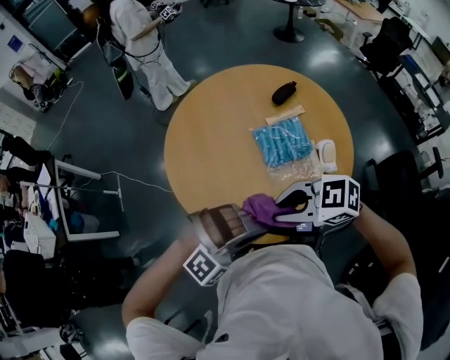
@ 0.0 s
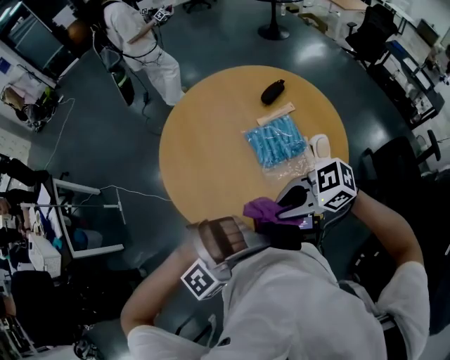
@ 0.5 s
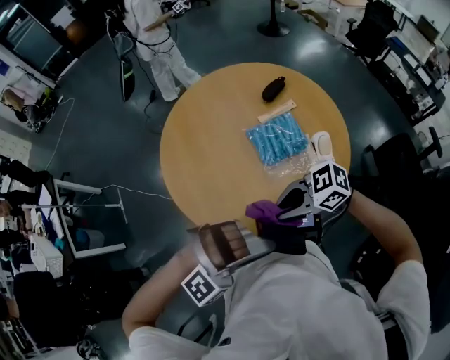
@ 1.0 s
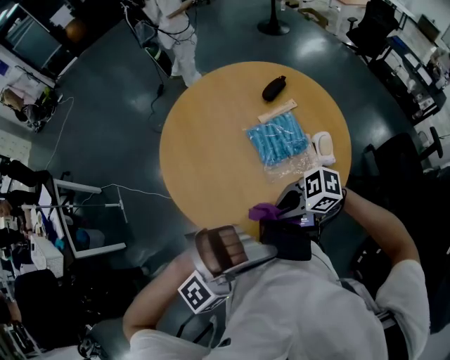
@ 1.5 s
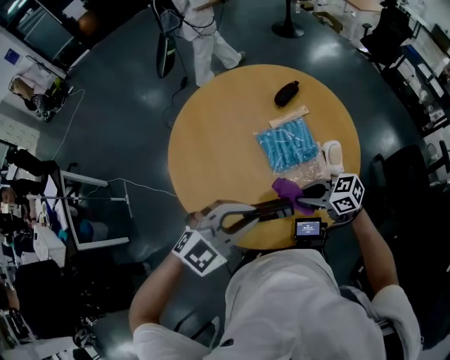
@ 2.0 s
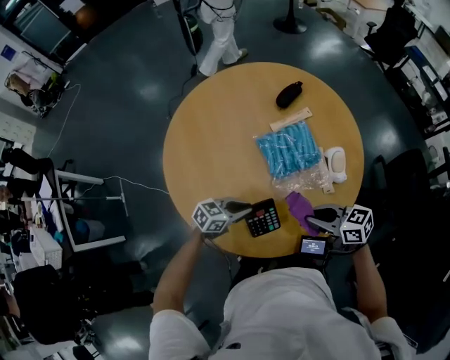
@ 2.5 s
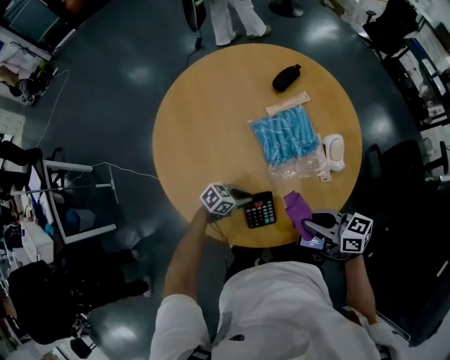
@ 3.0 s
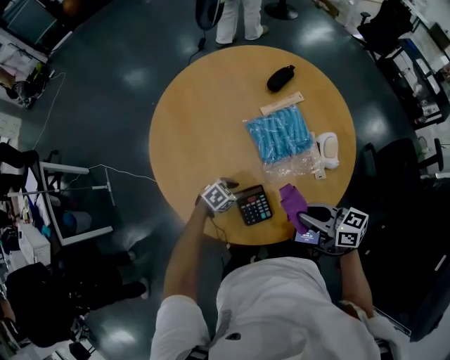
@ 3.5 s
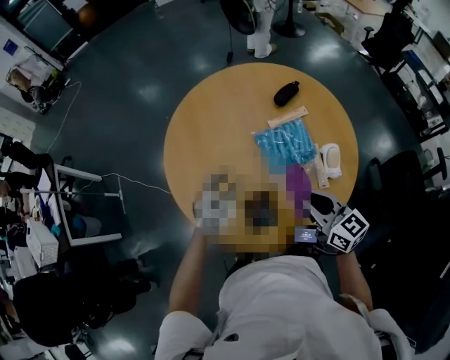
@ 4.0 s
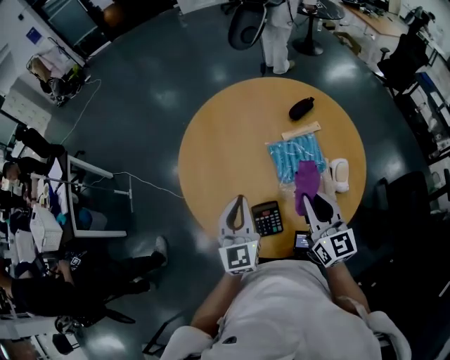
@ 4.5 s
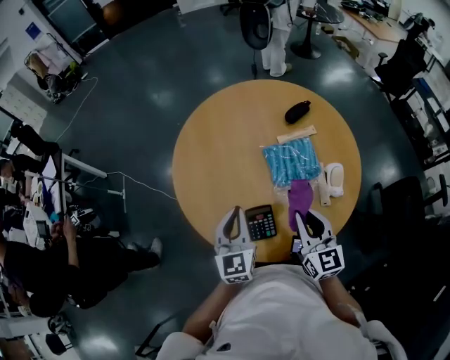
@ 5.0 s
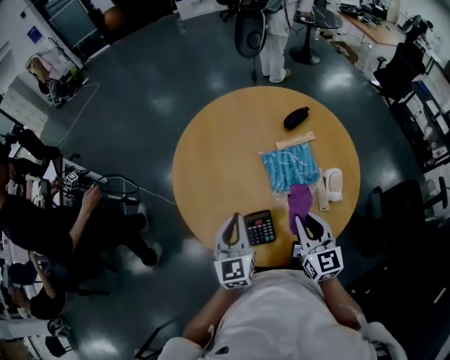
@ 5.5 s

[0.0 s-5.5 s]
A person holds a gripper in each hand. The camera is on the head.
0.0 to 2.0 s: The left gripper shifts by approximately 10 cm, and rolls counterclockwise, seen from behind, by some 50 degrees, while the right gripper shifts roughly 15 cm downward, and rotates roughly 30 degrees.
2.0 to 3.5 s: The left gripper shifts roughly 40 cm downward, tips its fingers downward by about 30 degrees, and opens; the right gripper turns by approximately 30 degrees.
3.5 to 5.5 s: The right gripper moves upward, approximately 5 cm, and rotates roughly 50 degrees. Meanwhile the left gripper shifts about 30 cm upward, points its fingers roughly 40 degrees further upward, and closes.

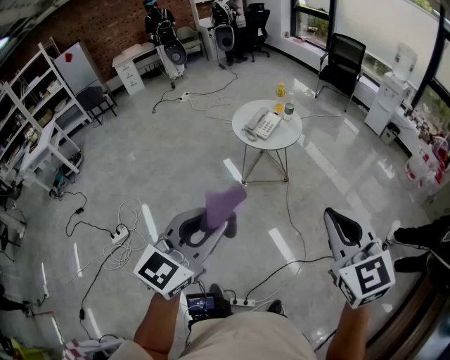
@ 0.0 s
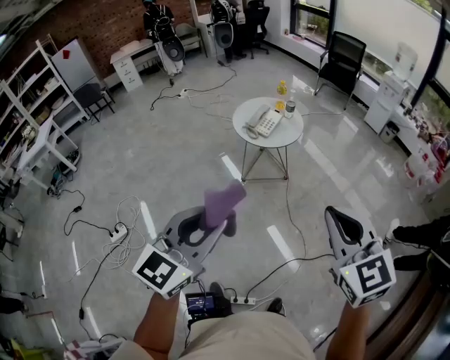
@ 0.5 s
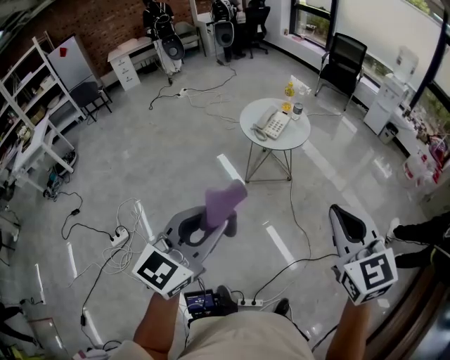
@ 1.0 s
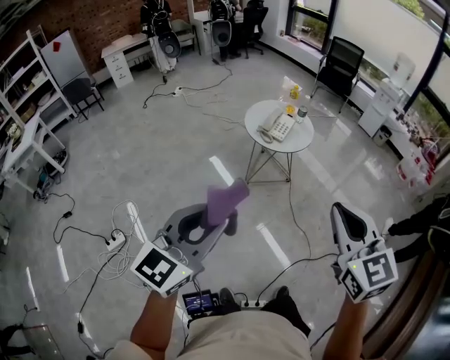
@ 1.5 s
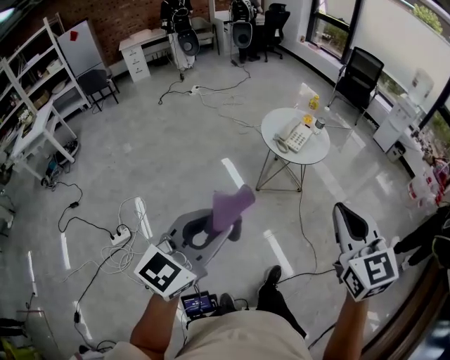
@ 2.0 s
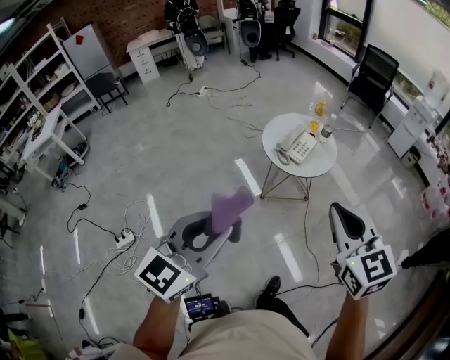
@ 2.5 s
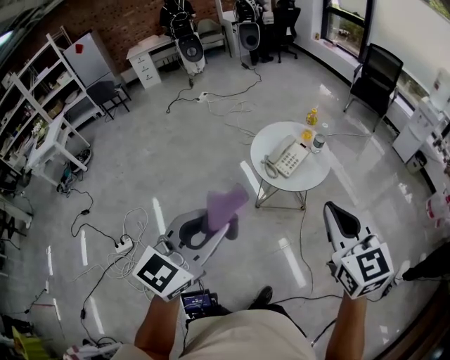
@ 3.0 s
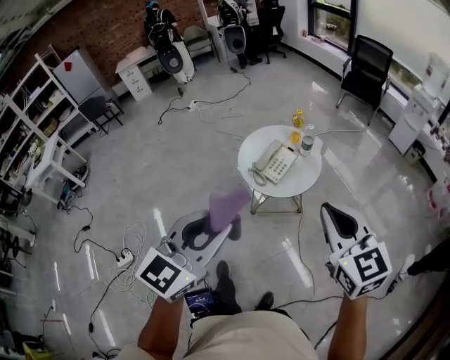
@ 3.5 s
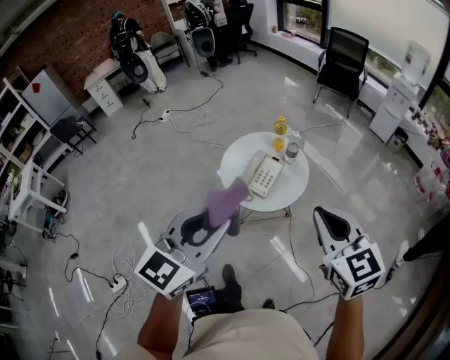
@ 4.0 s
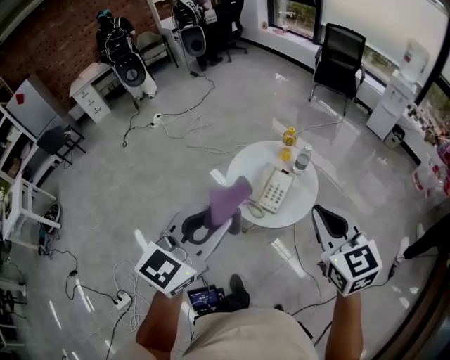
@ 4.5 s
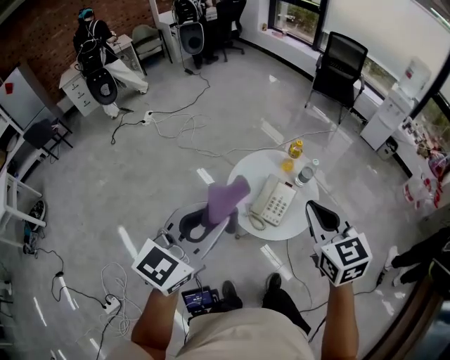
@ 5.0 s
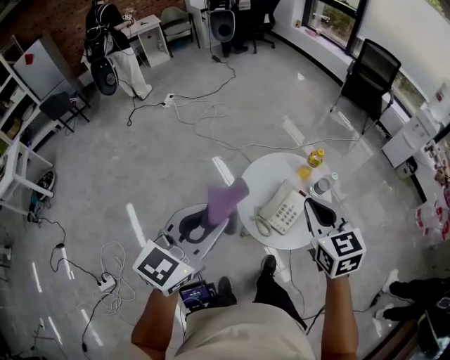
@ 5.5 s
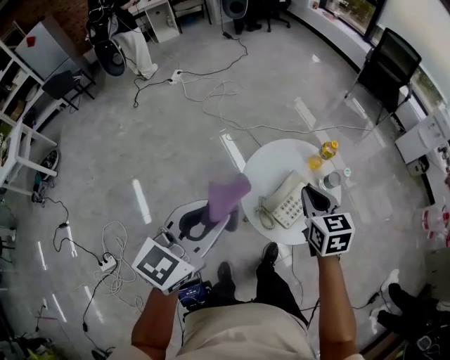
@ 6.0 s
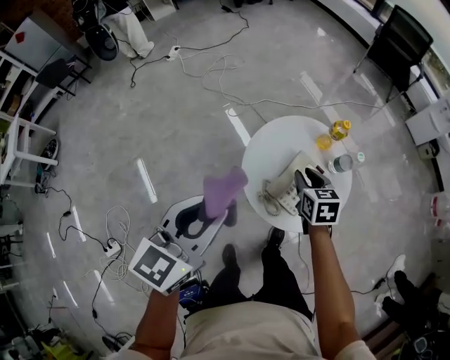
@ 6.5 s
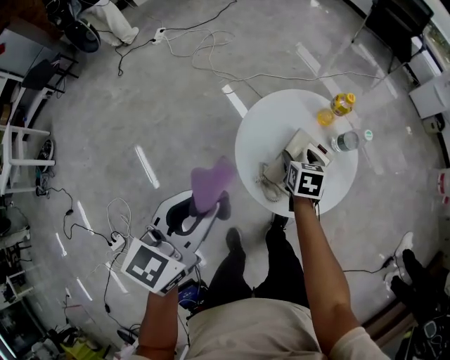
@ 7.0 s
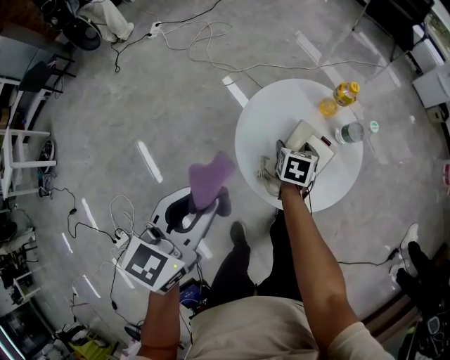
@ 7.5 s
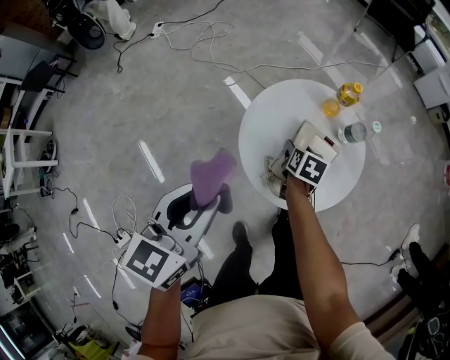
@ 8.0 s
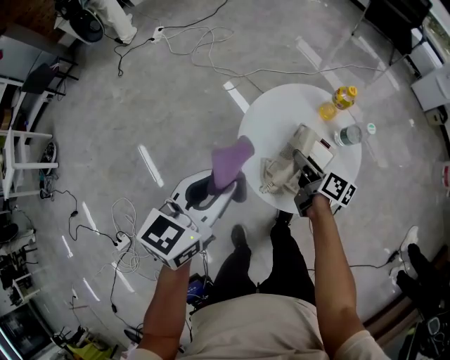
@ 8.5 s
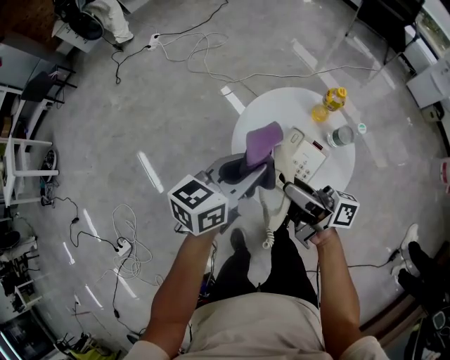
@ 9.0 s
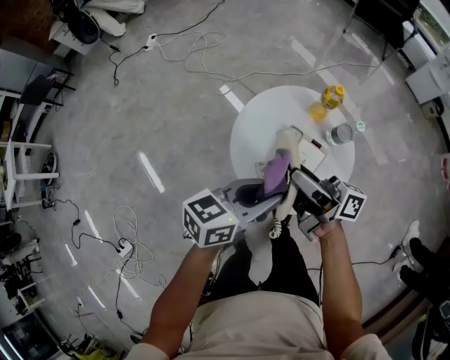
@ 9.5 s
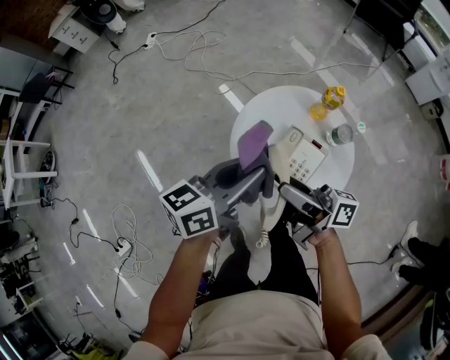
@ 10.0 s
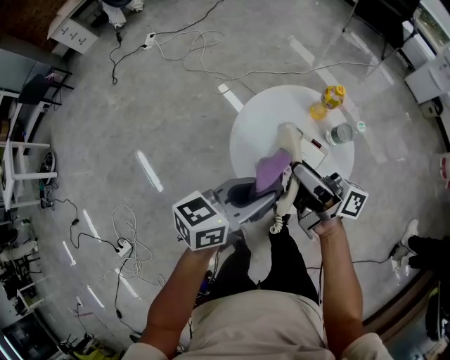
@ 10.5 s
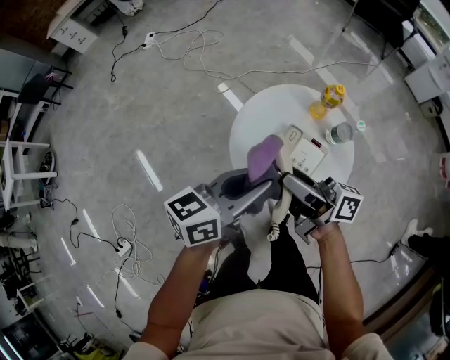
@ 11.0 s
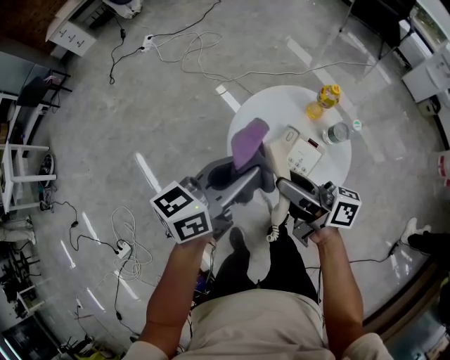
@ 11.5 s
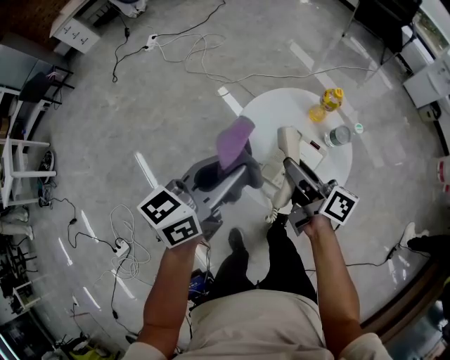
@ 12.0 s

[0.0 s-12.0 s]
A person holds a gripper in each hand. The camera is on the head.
0.0 to 2.0 s: Both grippers travel together to the left, roughly 25 cm.
2.0 to 4.0 s: The two grippers travel together, forward and to the right, about 40 cm.
4.0 to 6.0 s: The left gripper travels forward, to the left and downward by approximately 35 cm. Meanwhile the right gripper heads forward, downward and to the left, covering some 40 cm.
6.0 to 8.0 s: The right gripper travels downward by approximately 30 cm, changes its angle by some 40 degrees, and opens; the left gripper moves downward, some 15 cm.
8.0 to 10.0 s: The right gripper heads upward, covering roughly 25 cm, and tilts its fingers roughly 70 degrees upward, while the left gripper shifts roughly 10 cm to the right and forward, and changes its angle by roughly 30 degrees.
10.0 to 12.0 s: The right gripper ends up roughly 5 cm from where it was, and changes its angle by approximately 30 degrees. The left gripper ends up about 5 cm from where it was.

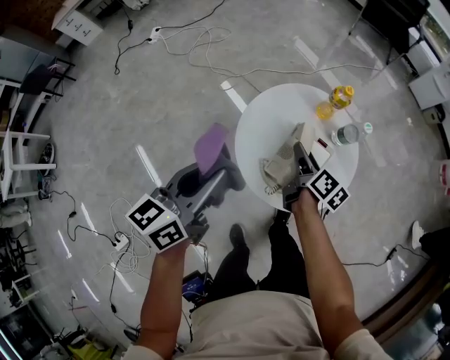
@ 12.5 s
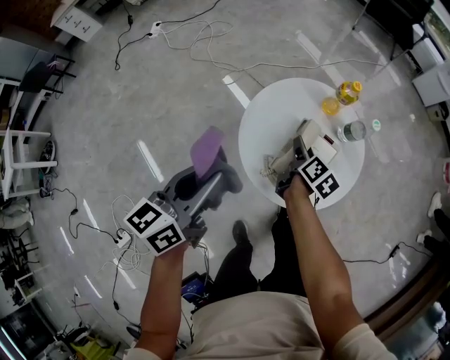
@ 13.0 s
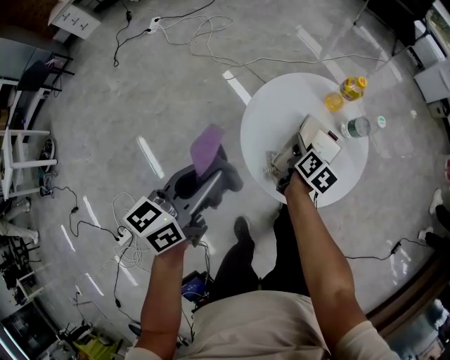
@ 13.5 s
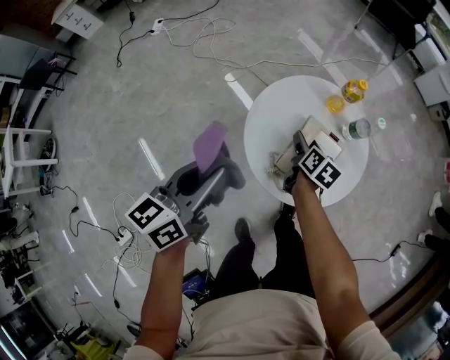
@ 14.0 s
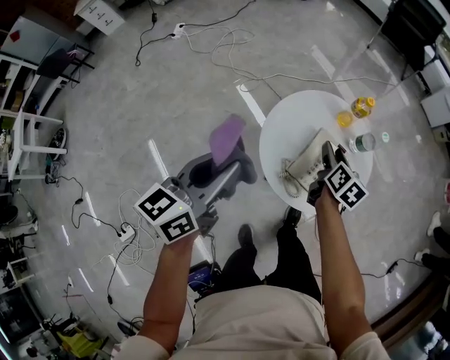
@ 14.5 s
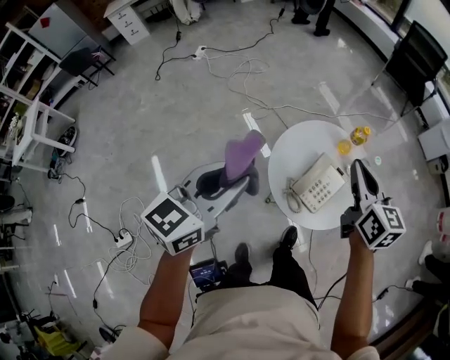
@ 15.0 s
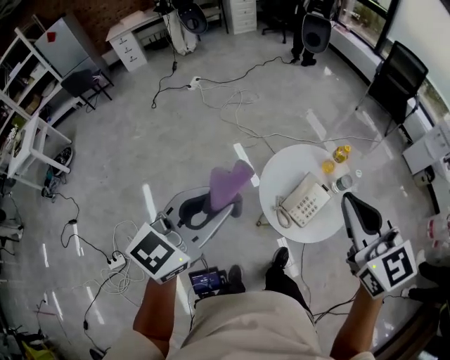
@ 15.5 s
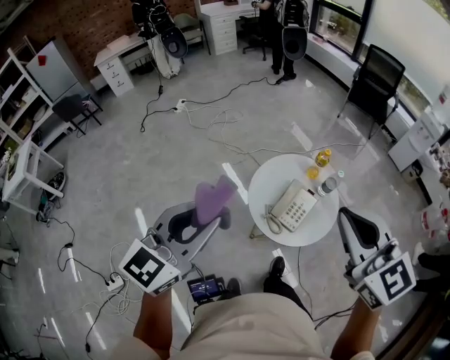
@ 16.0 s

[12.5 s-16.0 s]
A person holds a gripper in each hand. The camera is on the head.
12.5 to 14.5 s: The left gripper changes place by some 5 cm, while the right gripper reaches approximately 10 cm downward, then returns, and rotates roughly 20 degrees.
14.5 to 16.0 s: The right gripper travels upward and backward by roughly 50 cm, twists about 50 degrees counterclockwise, seen from behind, and closes its fingers. The left gripper moves upward and backward, some 30 cm, and swivels approximately 30 degrees.

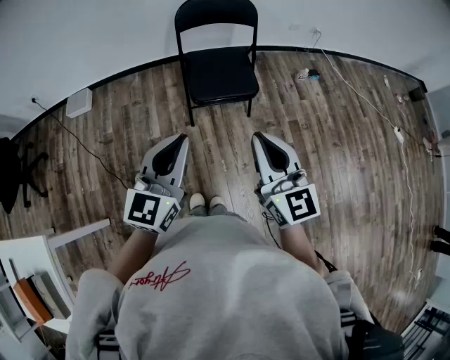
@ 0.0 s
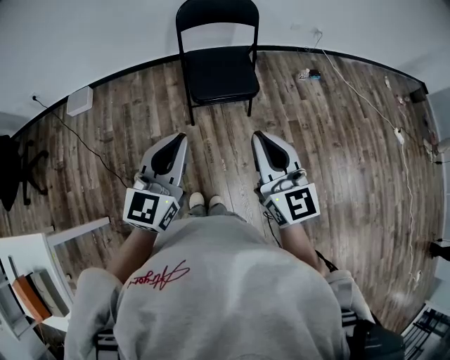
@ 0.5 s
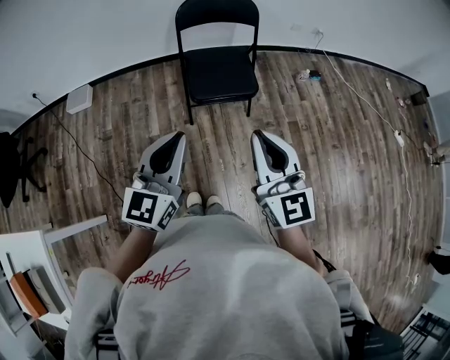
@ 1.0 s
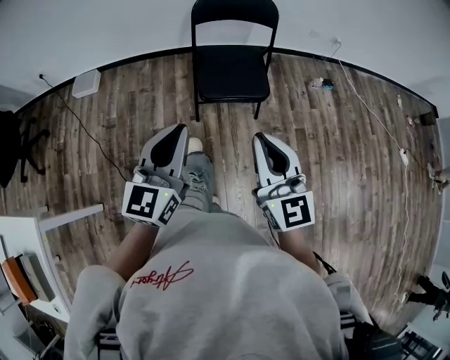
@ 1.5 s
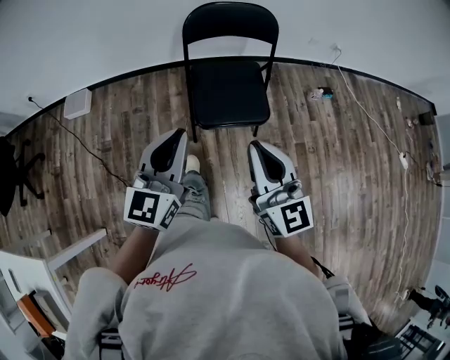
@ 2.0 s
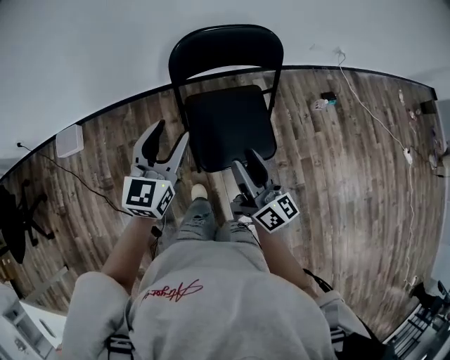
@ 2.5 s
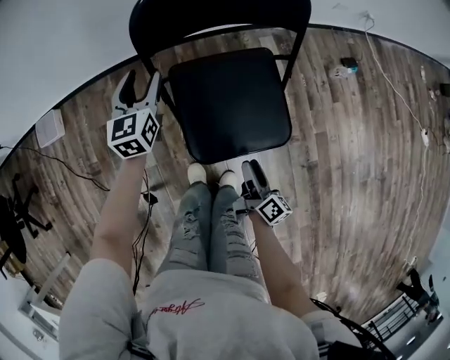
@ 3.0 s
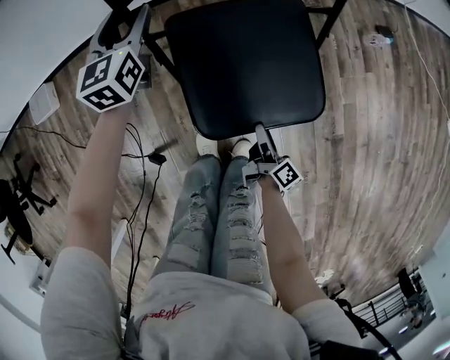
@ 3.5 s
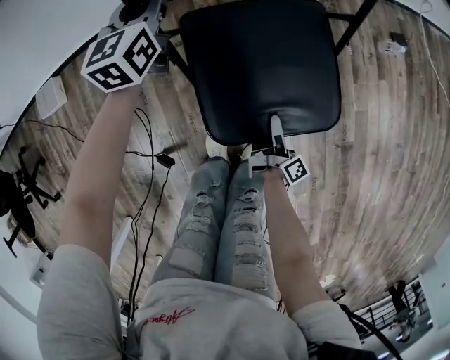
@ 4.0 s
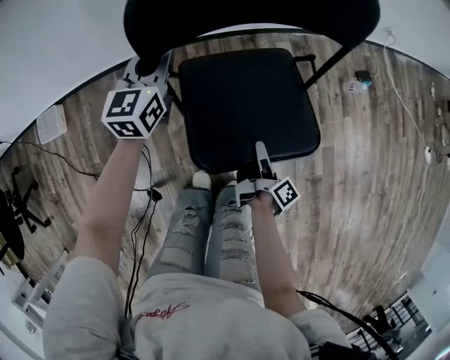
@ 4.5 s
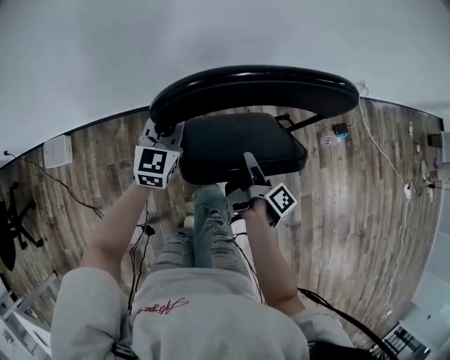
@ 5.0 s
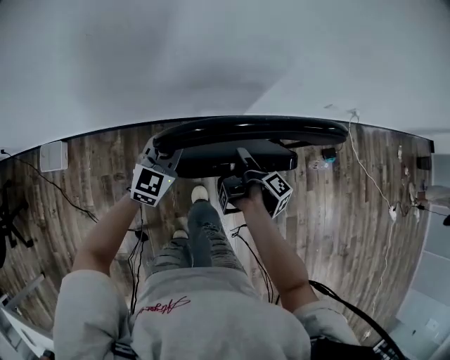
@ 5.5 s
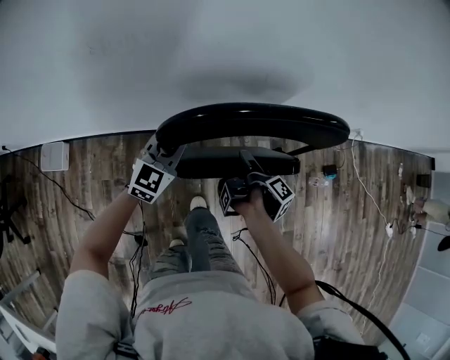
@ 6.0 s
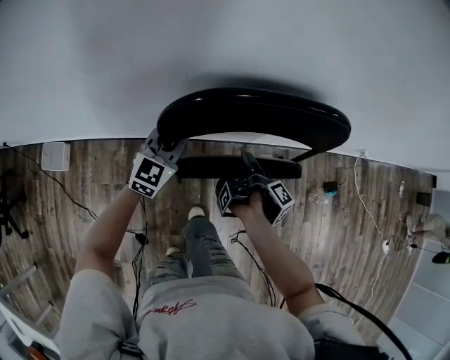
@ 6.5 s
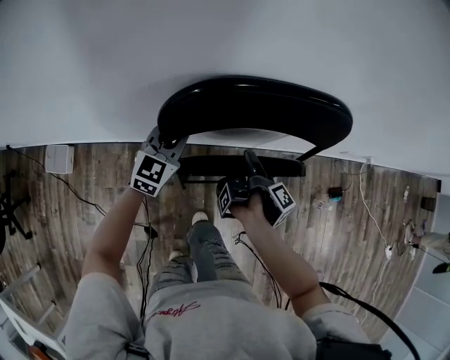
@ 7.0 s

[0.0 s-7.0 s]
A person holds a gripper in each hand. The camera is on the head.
0.0 to 2.0 s: The grippers both shift forward by approximately 15 cm.
2.0 to 3.5 s: The left gripper moves forward and downward, approximately 60 cm, and opens. Meanwhile the right gripper travels downward by approximately 50 cm, twists approximately 70 degrees clockwise, seen from behind, and opens.
3.5 to 5.0 s: The right gripper travels upward and forward by some 30 cm, swivels approximately 20 degrees, and closes up; the left gripper shifts about 10 cm upward, and closes.
5.0 to 7.0 s: Both grippers travel together forward, approximately 20 cm.
